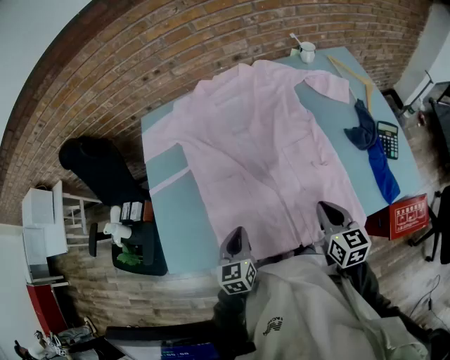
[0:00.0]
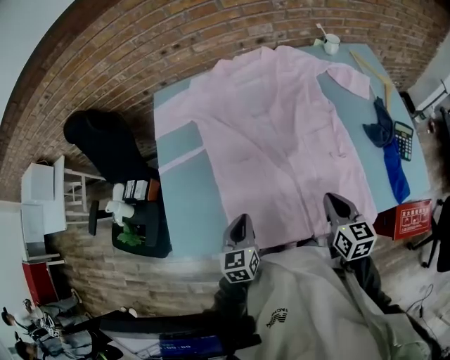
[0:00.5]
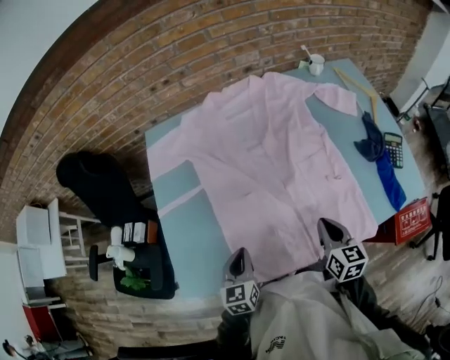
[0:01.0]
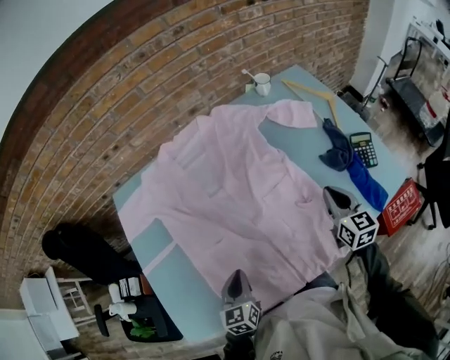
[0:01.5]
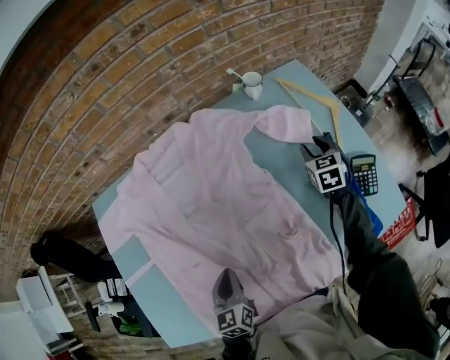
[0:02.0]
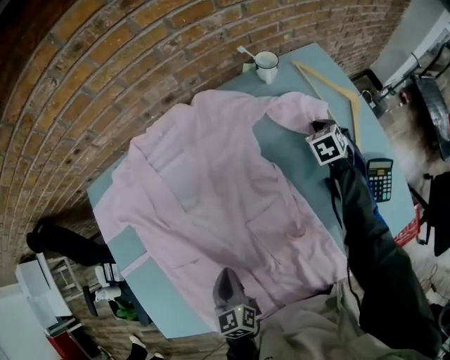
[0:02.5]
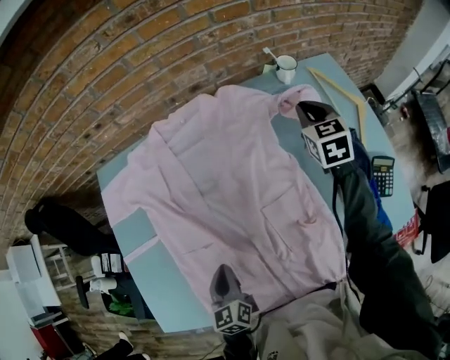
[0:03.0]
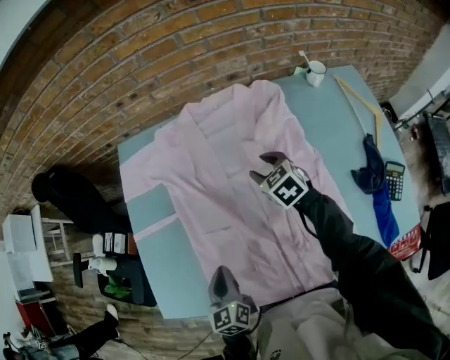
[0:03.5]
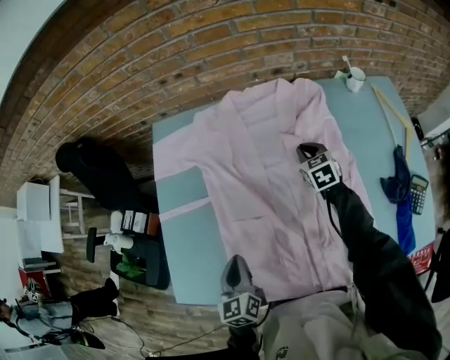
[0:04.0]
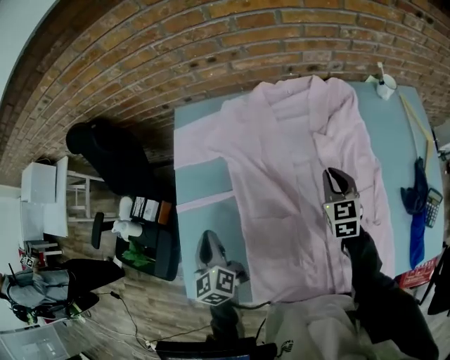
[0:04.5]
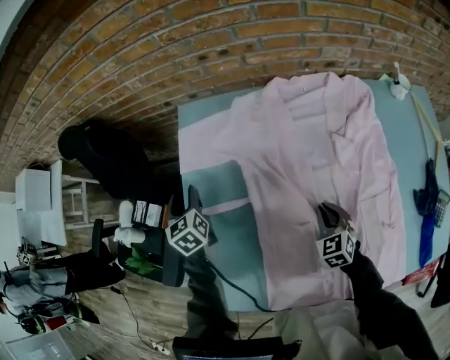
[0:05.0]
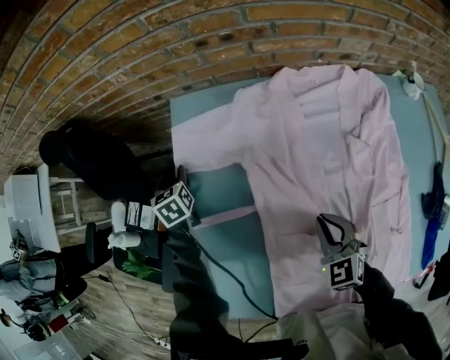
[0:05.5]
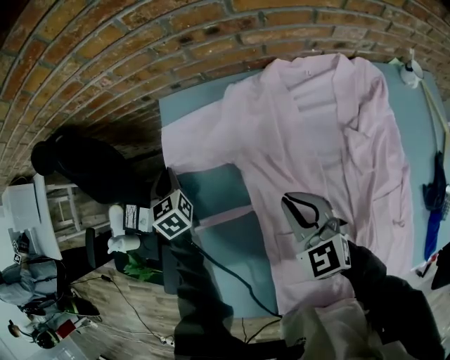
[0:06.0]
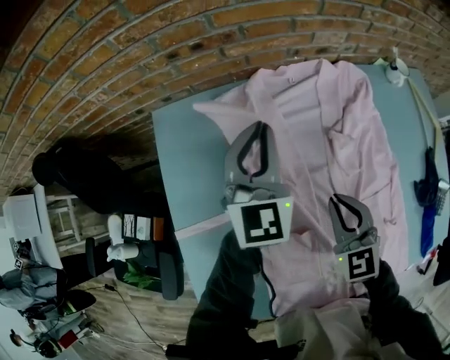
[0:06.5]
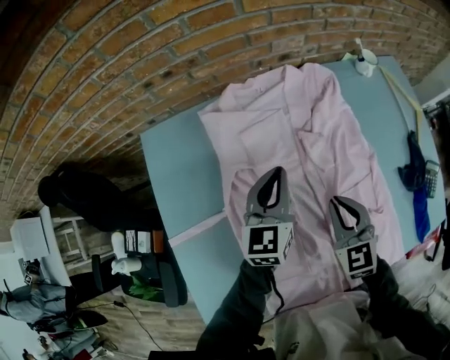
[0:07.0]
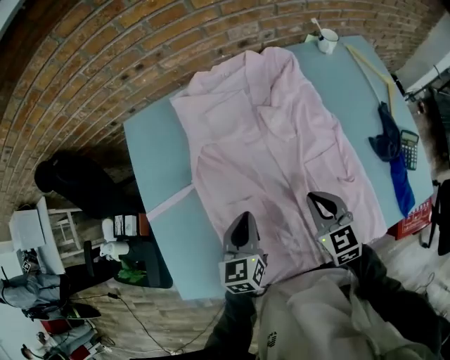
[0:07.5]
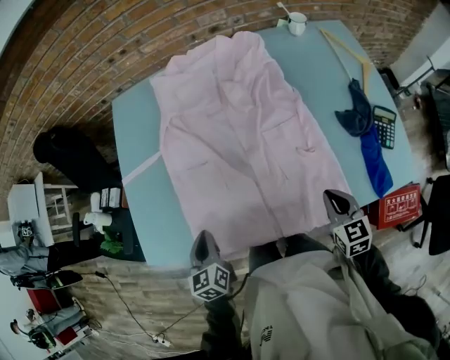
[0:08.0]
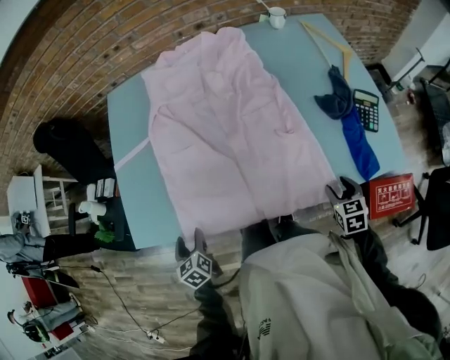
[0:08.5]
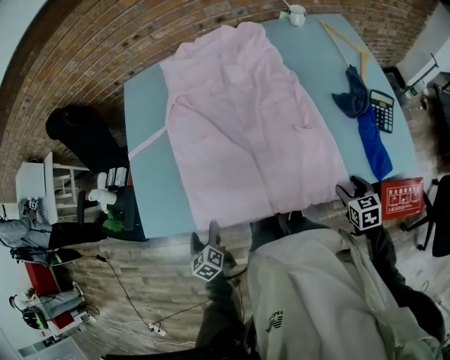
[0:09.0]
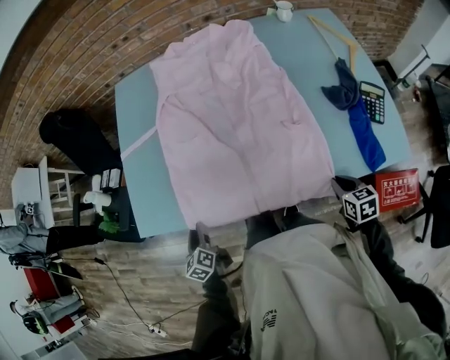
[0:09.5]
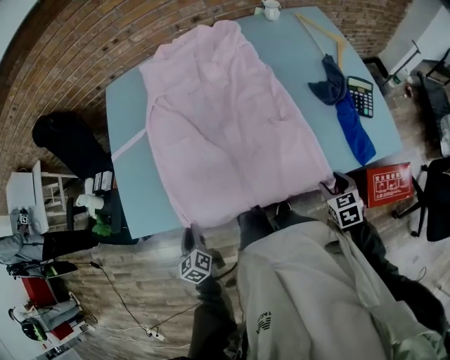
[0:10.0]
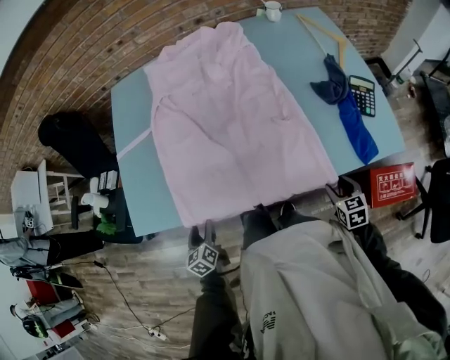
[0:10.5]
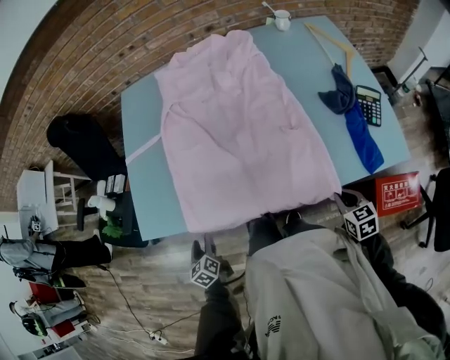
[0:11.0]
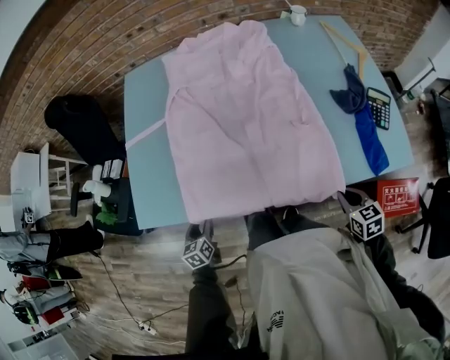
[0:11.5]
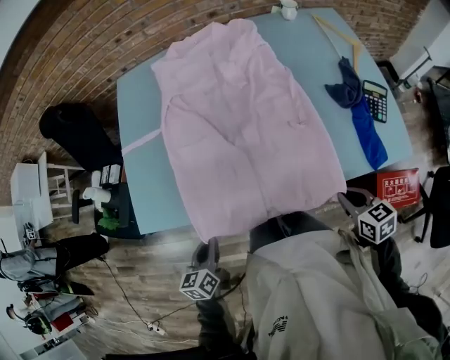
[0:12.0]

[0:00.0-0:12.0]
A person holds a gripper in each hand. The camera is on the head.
0:00.0 to 0:02.0: The left gripper shifts roughly 20 cm forward and to the right. The right gripper travels forward and to the right by approximately 40 cm, turns by roughly 30 degrees, and opens.
0:02.0 to 0:04.0: The left gripper moves approximately 20 cm, and turns by roughly 20 degrees; the right gripper goes up and down, approximately 15 cm each way, reversing 2 times, turns by about 30 degrees, and closes up.
0:04.0 to 0:06.0: The left gripper heads forward and to the left, covering some 50 cm, swivels some 20 degrees, and opens and closes again, while the right gripper shifts some 25 cm to the left, and swivels about 20 degrees.
0:06.0 to 0:08.0: The pair of grippers is taken roughly 50 cm. The right gripper swivels some 30 degrees.
0:08.0 to 0:10.0: The right gripper travels backward, downward and to the right by approximately 15 cm, and opens up. The left gripper heads backward, downward and to the left, covering some 15 cm, and opens and closes again.
0:10.0 to 0:12.0: The two grippers go about 5 cm upward. The right gripper turns by some 20 degrees, and closes; the left gripper changes its angle by about 20 degrees, and opens, then closes again.

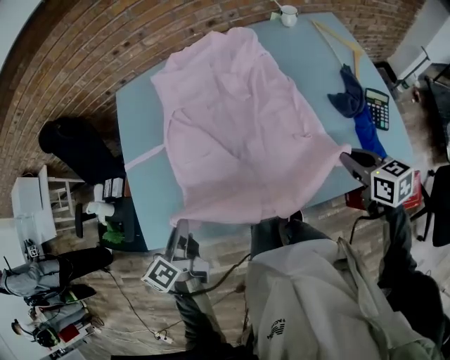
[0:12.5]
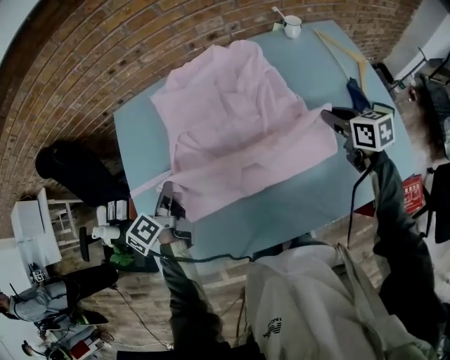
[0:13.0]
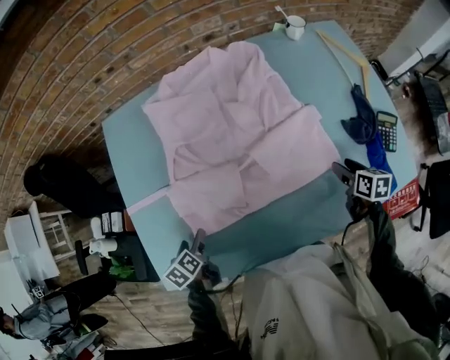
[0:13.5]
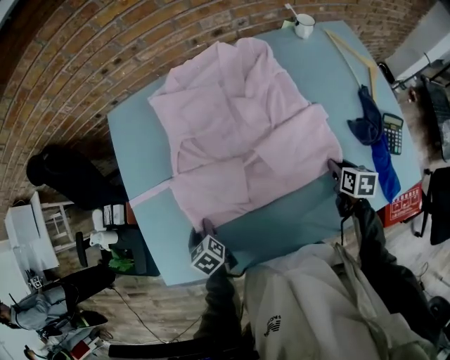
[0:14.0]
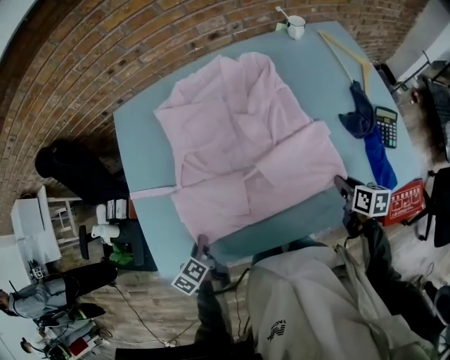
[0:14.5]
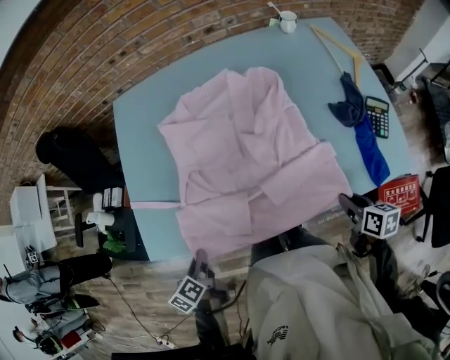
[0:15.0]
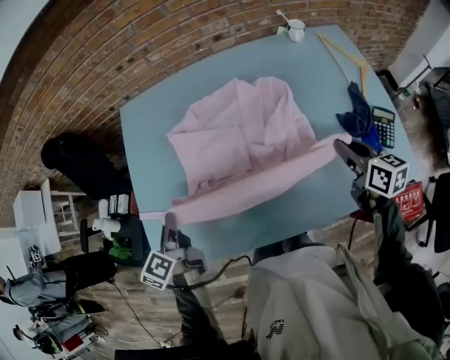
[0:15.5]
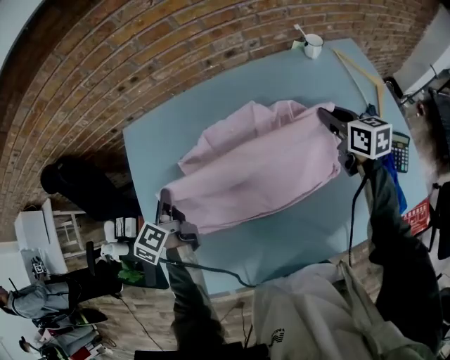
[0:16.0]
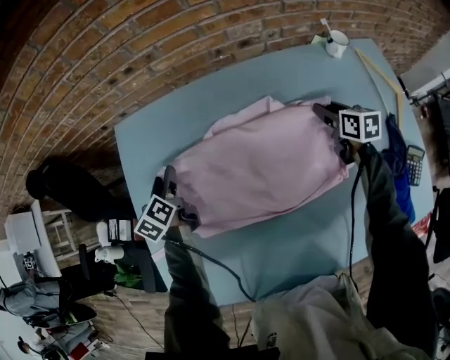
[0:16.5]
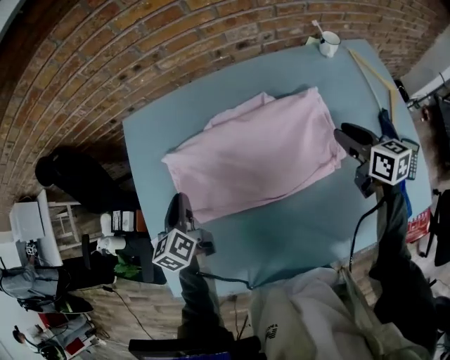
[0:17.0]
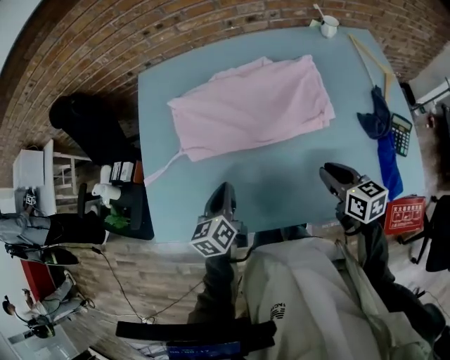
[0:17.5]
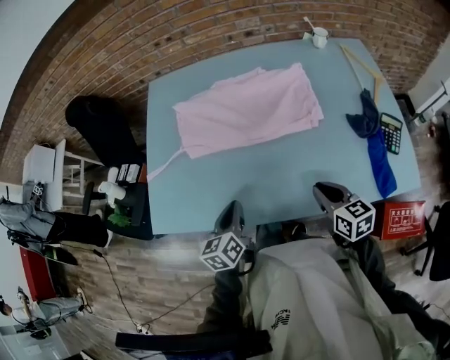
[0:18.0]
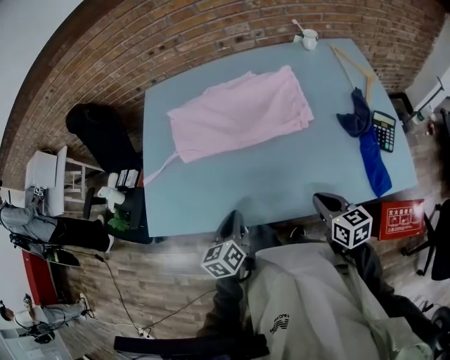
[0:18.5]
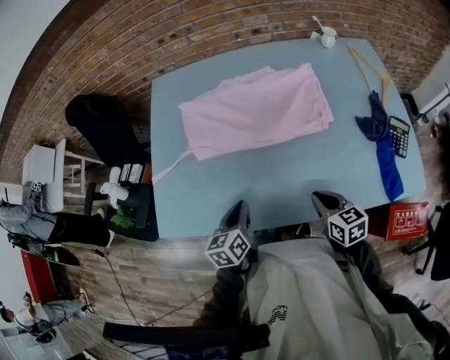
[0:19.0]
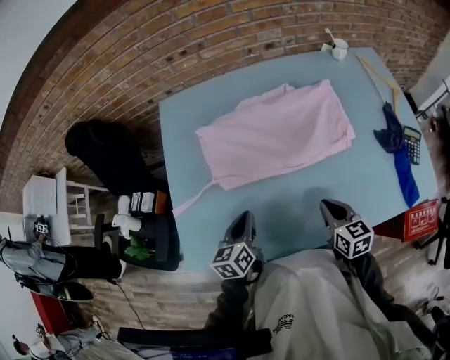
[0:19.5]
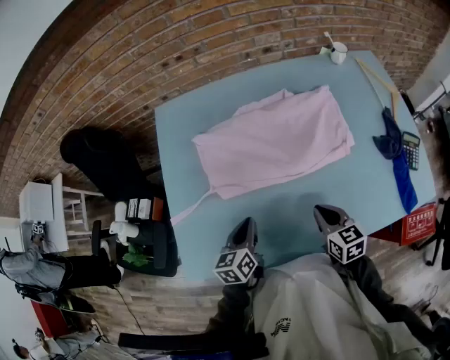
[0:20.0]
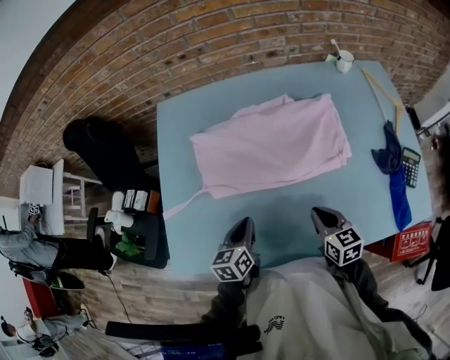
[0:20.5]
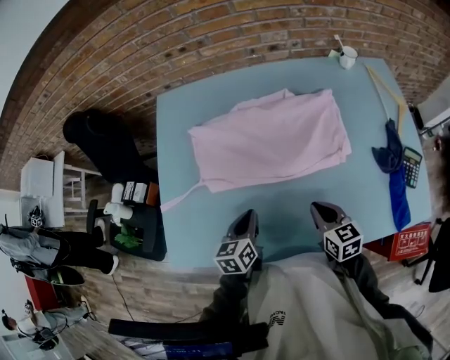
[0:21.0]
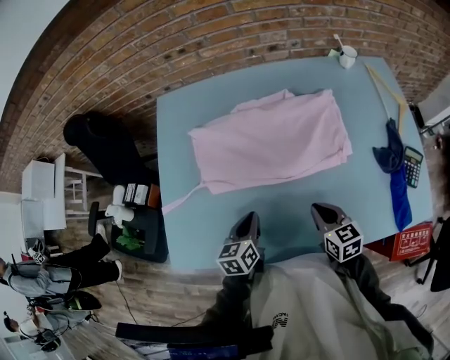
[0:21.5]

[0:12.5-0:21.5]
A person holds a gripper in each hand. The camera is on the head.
0:12.5 to 0:14.5: The two grippers go some 15 cm downward. The right gripper travels forward and back again, some 20 cm each way, swivels roughly 30 degrees, and opens, then closes again. The left gripper reaches some 20 cm forward, then returns, turns by roughly 30 degrees, and opens and closes again.
0:14.5 to 0:17.0: The right gripper swings forward and backward, approximately 50 cm each way, with 2 reversals, changes its angle by some 30 degrees, and opens up; the left gripper moves forward and backward over roughly 50 cm, changing direction 2 times, changes its angle by about 30 degrees, and opens and closes again.
0:17.0 to 0:19.5: The left gripper heads backward, covering approximately 20 cm. The right gripper travels backward and to the left by approximately 30 cm, and closes up.
0:19.5 to 0:21.5: The left gripper travels to the right by approximately 5 cm.

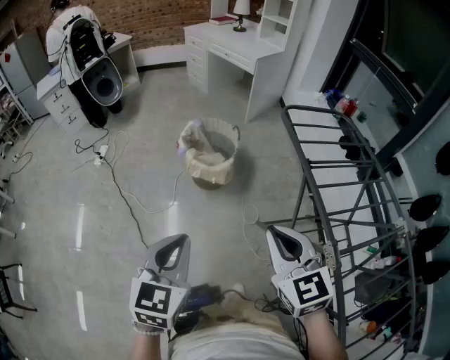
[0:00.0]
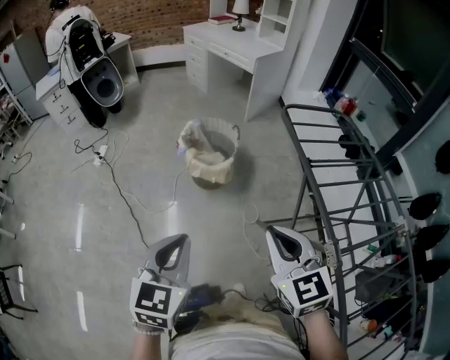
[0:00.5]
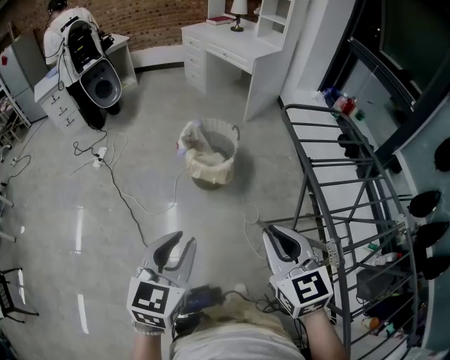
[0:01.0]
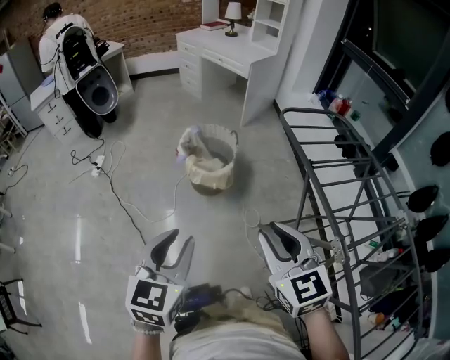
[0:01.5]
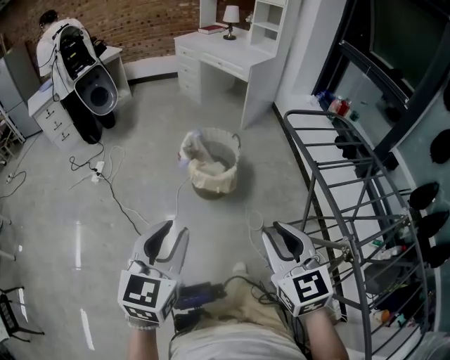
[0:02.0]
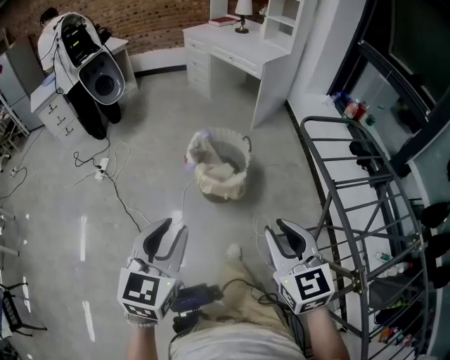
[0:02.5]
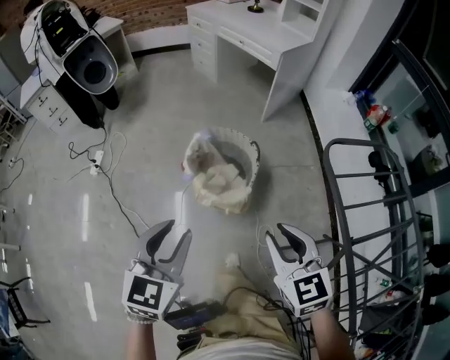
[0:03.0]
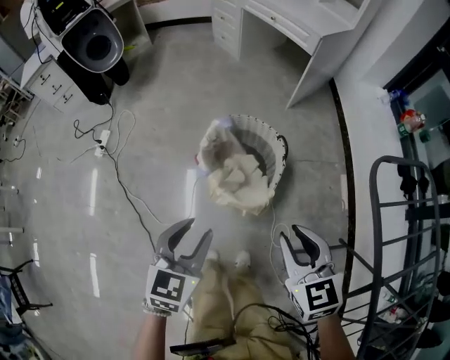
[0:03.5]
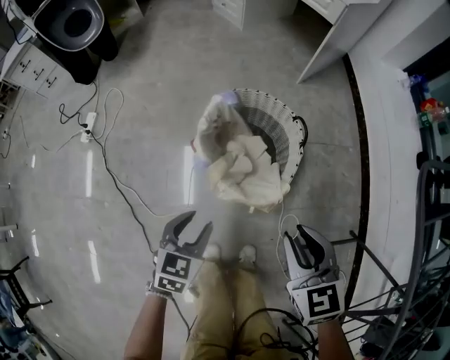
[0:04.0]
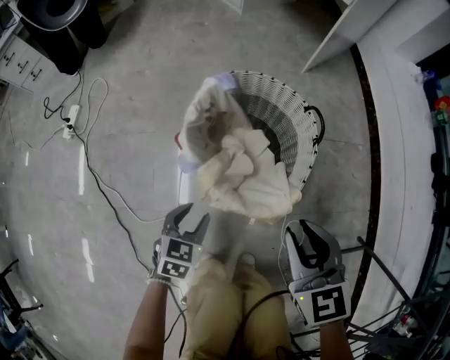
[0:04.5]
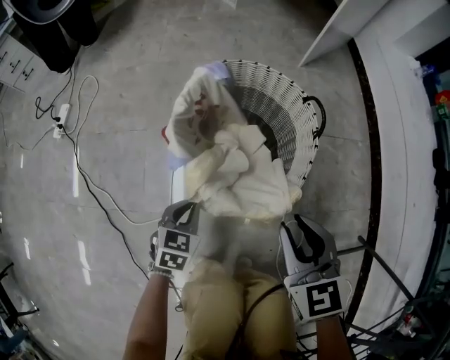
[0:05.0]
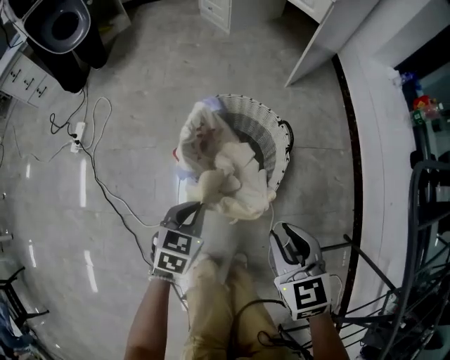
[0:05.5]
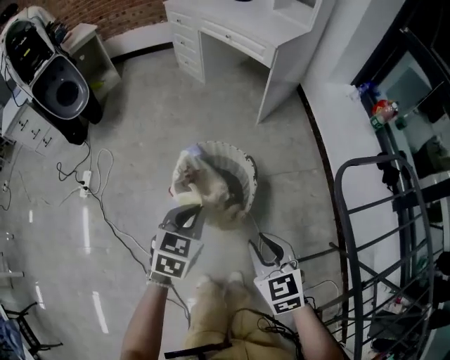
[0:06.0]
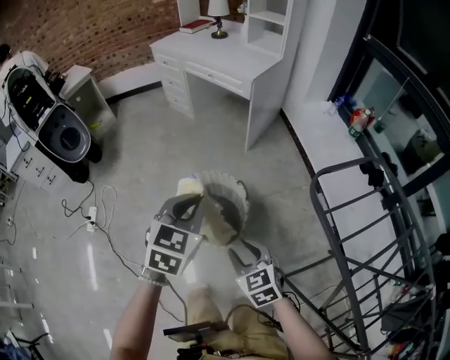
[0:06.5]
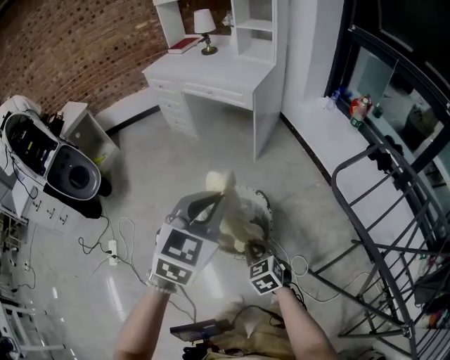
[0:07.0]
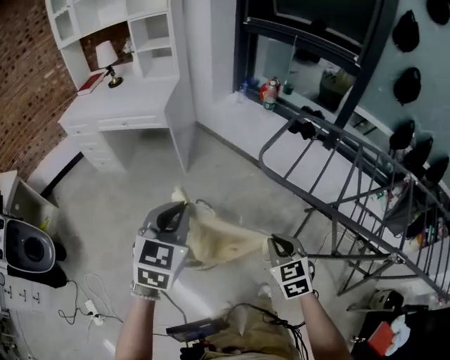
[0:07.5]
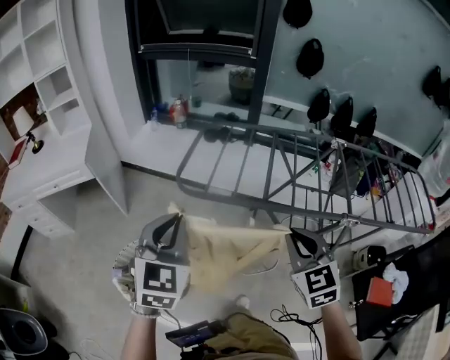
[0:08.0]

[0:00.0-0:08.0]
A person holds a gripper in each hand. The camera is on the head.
0:00.0 to 0:02.0: The two grippers go approximately 5 cm to the left. The left gripper opens up. The right gripper opens up.
0:02.0 to 0:04.0: The two grippers travel together, forward, roughly 40 cm. Both grippers travel together downward, about 40 cm. The left gripper rotates roughly 30 degrees; the right gripper rotates roughly 20 degrees.
0:04.0 to 0:06.0: The left gripper moves upward, to the right and forward, some 25 cm, and closes, while the right gripper moves upward, approximately 10 cm.
0:06.0 to 0:08.0: The right gripper moves approximately 35 cm, and rotates roughly 70 degrees, while the left gripper goes about 30 cm upward, and turns by some 60 degrees.
